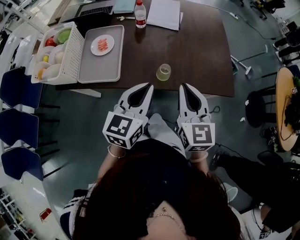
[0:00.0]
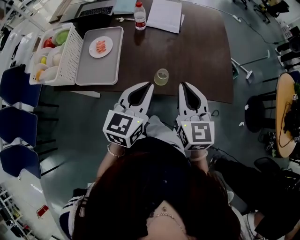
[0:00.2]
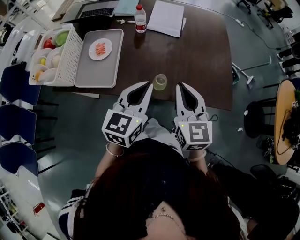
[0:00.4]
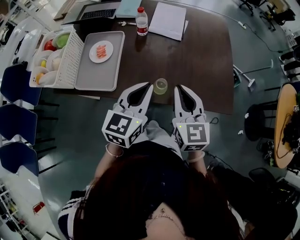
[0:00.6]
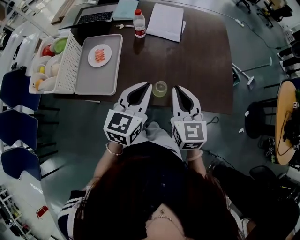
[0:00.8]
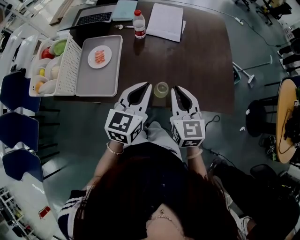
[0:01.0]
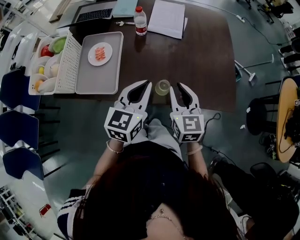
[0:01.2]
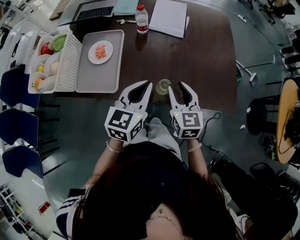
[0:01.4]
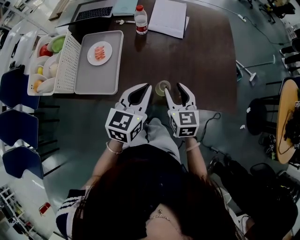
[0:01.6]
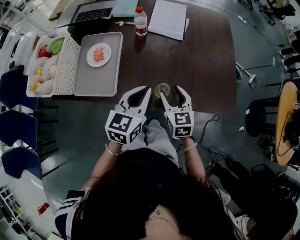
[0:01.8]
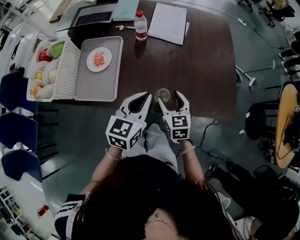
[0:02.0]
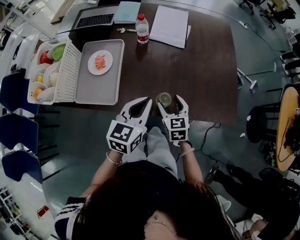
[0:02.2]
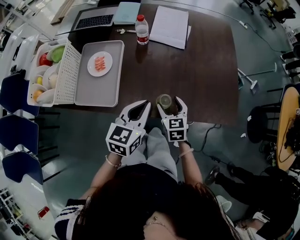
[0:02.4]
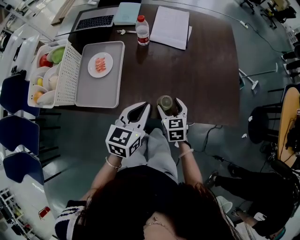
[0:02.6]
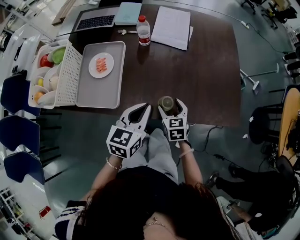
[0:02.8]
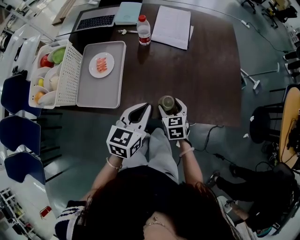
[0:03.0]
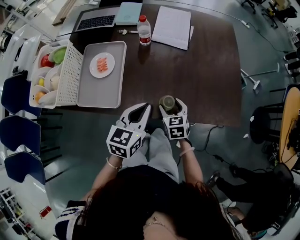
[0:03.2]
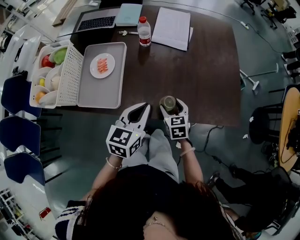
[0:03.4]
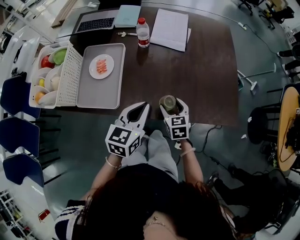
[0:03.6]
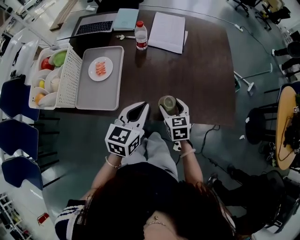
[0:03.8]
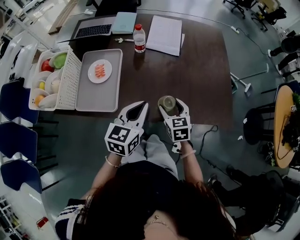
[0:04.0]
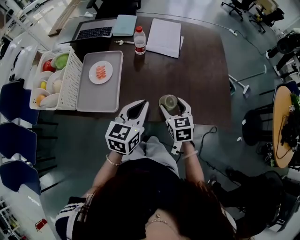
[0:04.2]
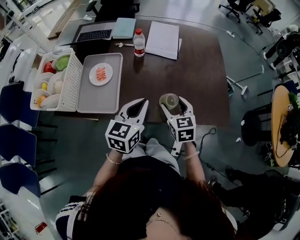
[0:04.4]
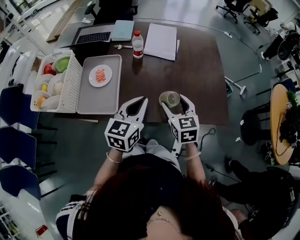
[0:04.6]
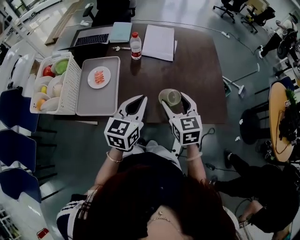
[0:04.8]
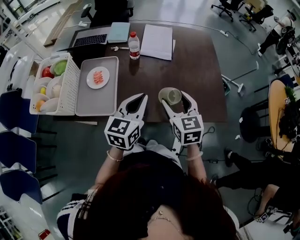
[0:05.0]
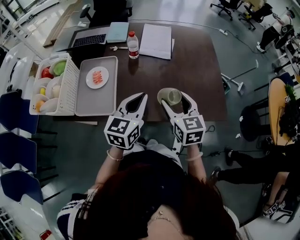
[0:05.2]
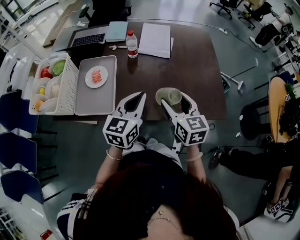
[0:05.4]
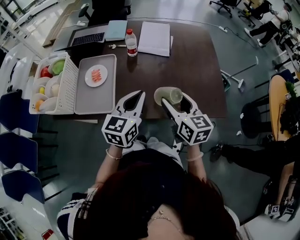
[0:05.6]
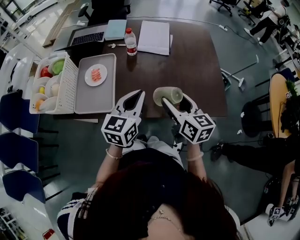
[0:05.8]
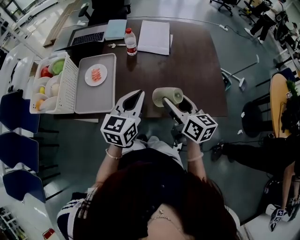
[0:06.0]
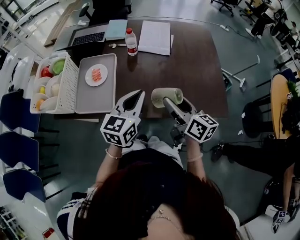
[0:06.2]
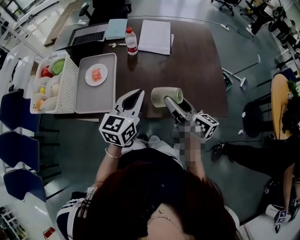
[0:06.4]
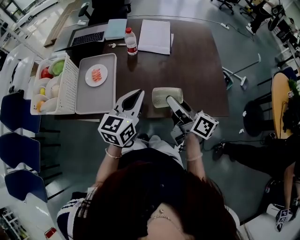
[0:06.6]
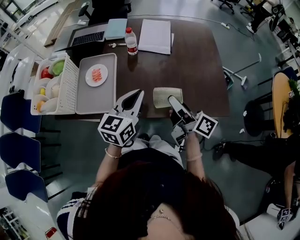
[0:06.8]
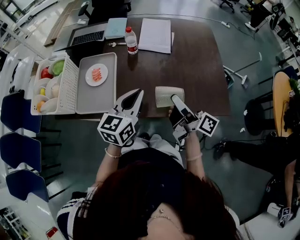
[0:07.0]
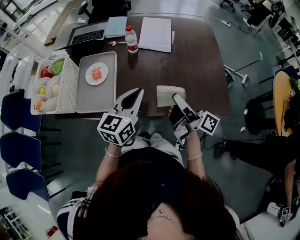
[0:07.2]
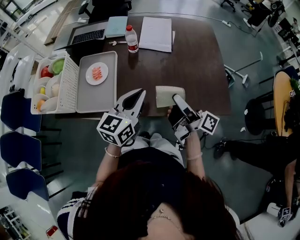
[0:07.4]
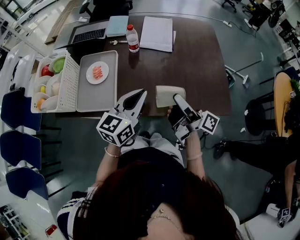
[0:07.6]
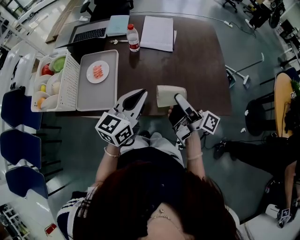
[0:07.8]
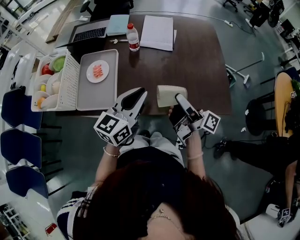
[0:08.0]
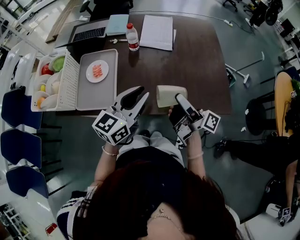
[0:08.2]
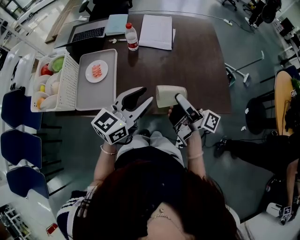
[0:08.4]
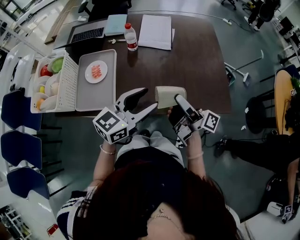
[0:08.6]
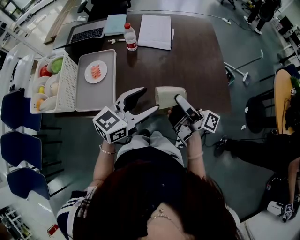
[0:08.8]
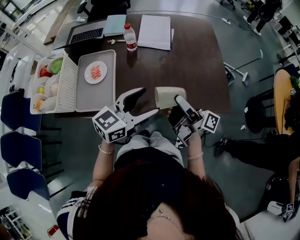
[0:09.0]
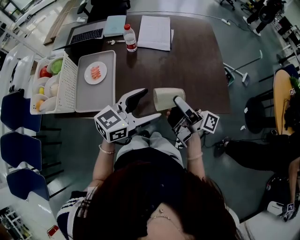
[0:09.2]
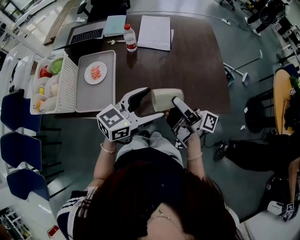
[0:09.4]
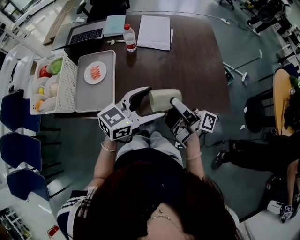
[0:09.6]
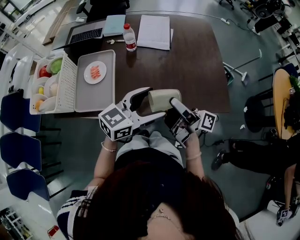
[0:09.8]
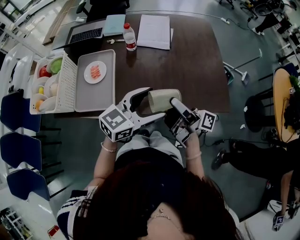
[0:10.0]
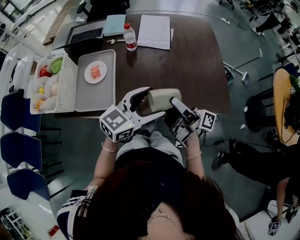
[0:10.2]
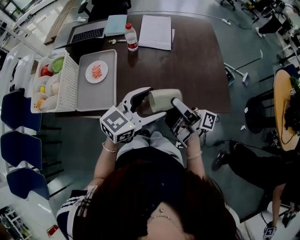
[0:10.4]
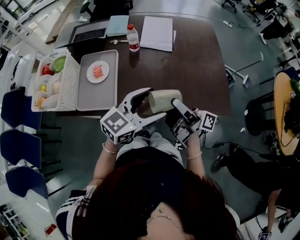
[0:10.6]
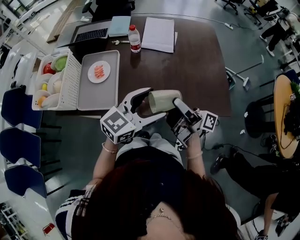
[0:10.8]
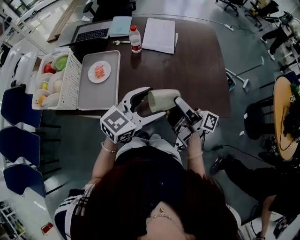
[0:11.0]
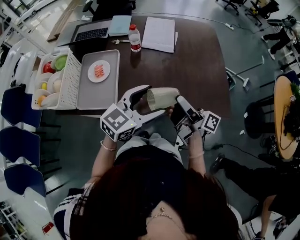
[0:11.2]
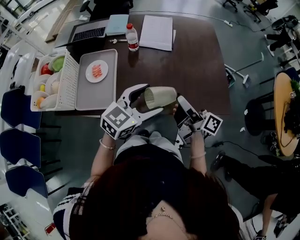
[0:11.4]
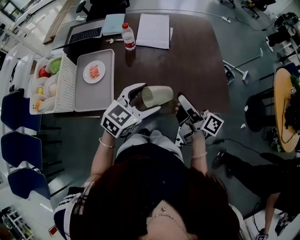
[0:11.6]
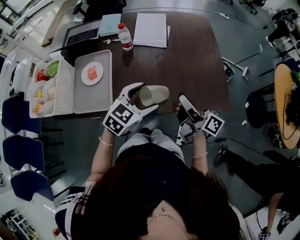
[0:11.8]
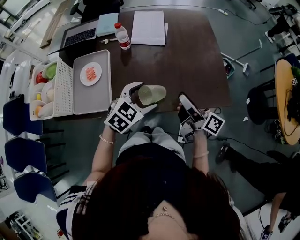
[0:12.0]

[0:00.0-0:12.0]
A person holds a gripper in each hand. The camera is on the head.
0:00.0 to 0:01.6: The right gripper heads downward and forward, covering some 15 cm, and opens; the left gripper goes some 10 cm forward and downward.
0:01.6 to 0:03.0: The right gripper is displaced downward by about 15 cm, and opens.
0:03.0 to 0:04.4: The left gripper shifts approximately 5 cm upward. The right gripper goes about 15 cm upward.
0:04.4 to 0:06.0: The right gripper is displaced upward by some 10 cm, and changes its angle by roughly 40 degrees.
0:06.0 to 0:07.6: The right gripper twists roughly 50 degrees clockwise, seen from behind.
0:07.6 to 0:09.0: The left gripper rotates roughly 20 degrees, and opens its fingers.
0:09.0 to 0:10.4: The grippers make only small movements.
0:10.4 to 0:12.0: The left gripper travels downward by about 10 cm, and rotates roughly 30 degrees. Meanwhile the right gripper moves to the right, approximately 10 cm, and rotates approximately 30 degrees.

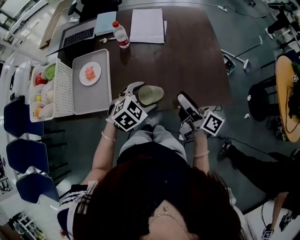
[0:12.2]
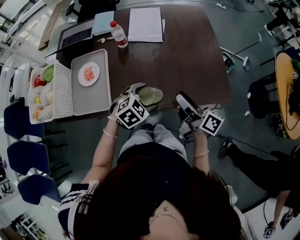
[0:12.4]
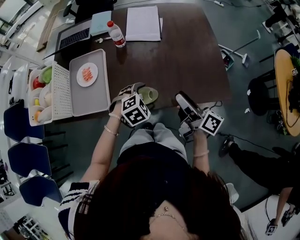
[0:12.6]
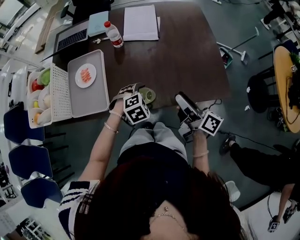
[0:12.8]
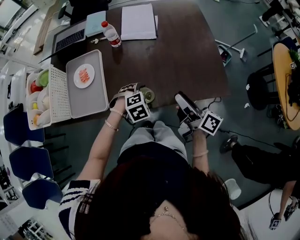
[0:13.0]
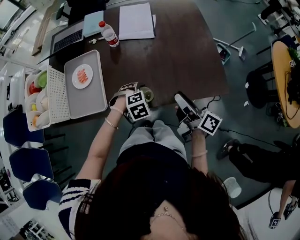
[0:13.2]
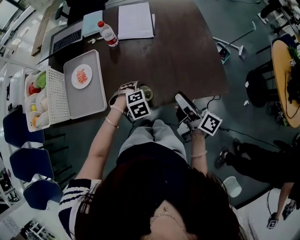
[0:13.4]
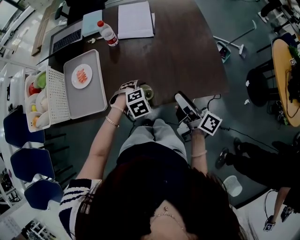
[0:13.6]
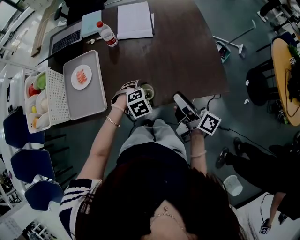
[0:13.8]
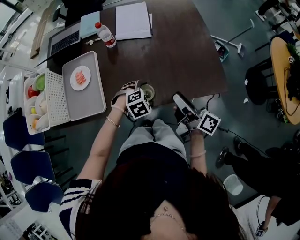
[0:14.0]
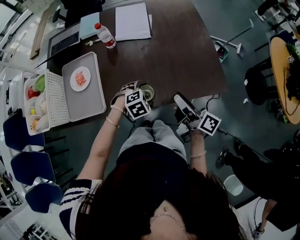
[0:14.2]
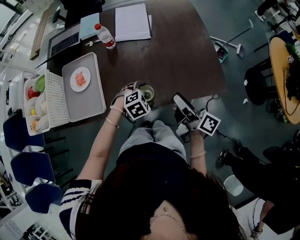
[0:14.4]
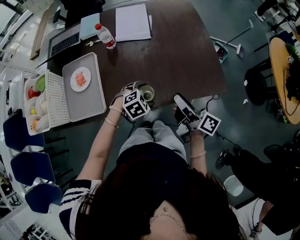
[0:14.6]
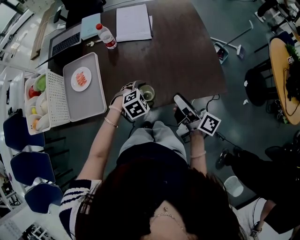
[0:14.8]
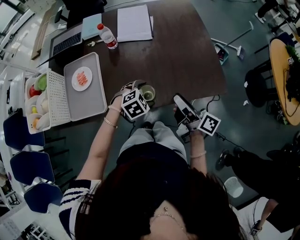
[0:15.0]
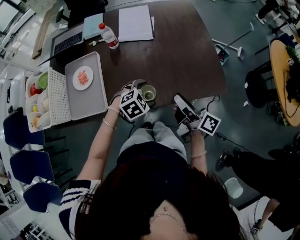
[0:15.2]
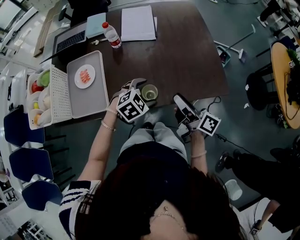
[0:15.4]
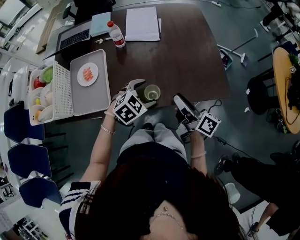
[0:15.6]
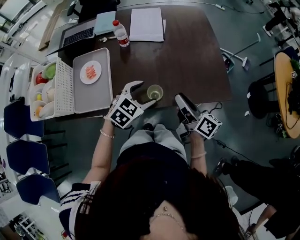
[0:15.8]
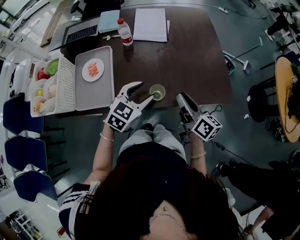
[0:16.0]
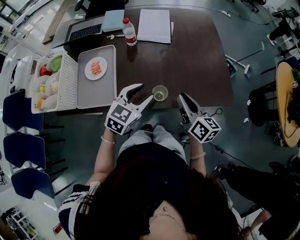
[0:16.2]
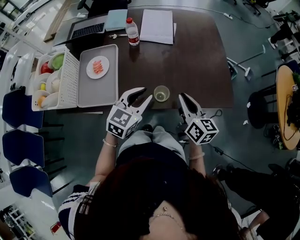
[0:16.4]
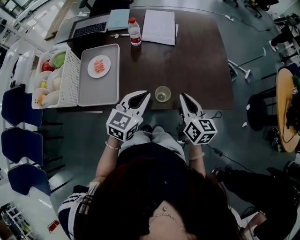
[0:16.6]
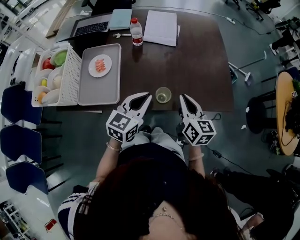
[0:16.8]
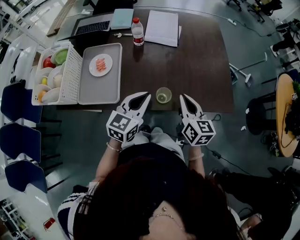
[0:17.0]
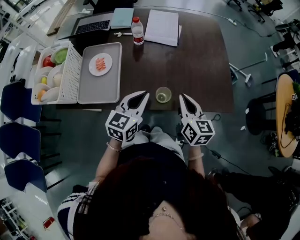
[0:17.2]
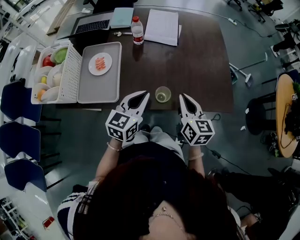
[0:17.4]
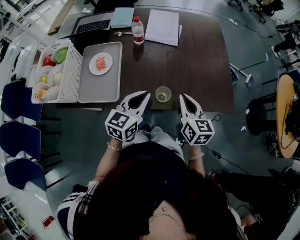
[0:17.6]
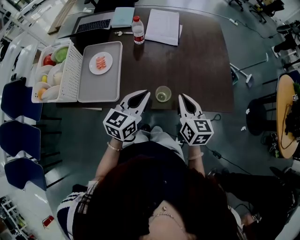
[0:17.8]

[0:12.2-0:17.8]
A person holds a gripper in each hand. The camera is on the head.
0:12.2 to 0:13.6: The left gripper shifts some 10 cm downward, and rotates roughly 30 degrees.
0:13.6 to 0:15.0: The grippers make only small movements.
0:15.0 to 0:16.4: The right gripper swivels about 40 degrees, and closes up. Meanwhile the left gripper travels upward and to the left by about 15 cm, points its fingers approximately 40 degrees further upward, and closes its fingers.
0:16.4 to 0:17.8: The left gripper changes its angle by some 20 degrees.

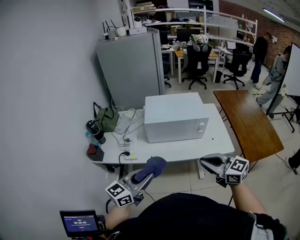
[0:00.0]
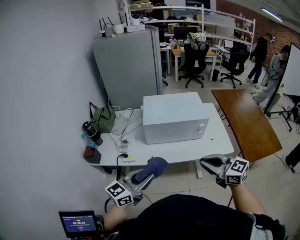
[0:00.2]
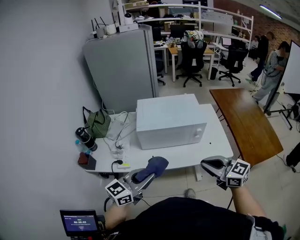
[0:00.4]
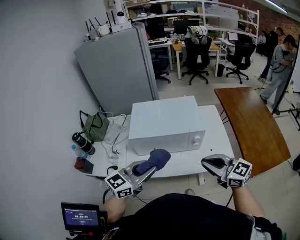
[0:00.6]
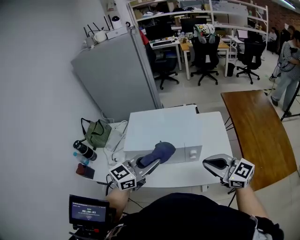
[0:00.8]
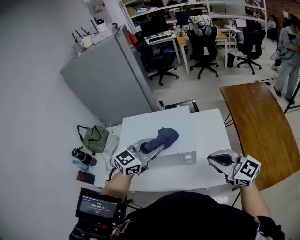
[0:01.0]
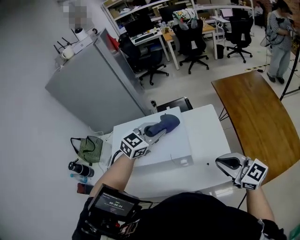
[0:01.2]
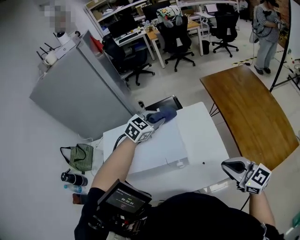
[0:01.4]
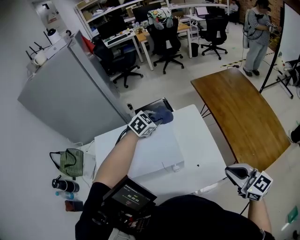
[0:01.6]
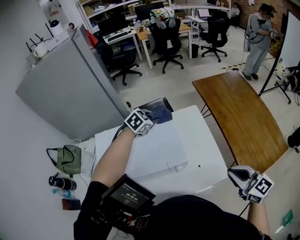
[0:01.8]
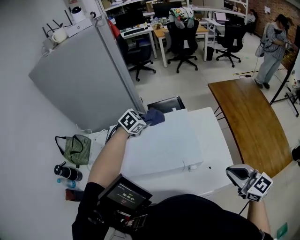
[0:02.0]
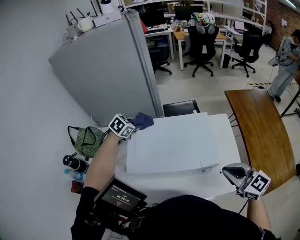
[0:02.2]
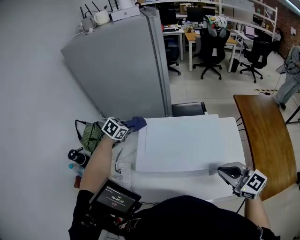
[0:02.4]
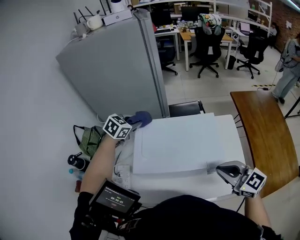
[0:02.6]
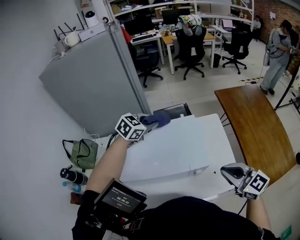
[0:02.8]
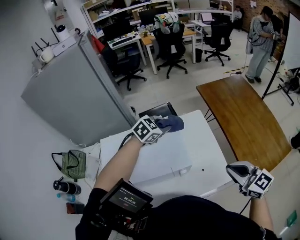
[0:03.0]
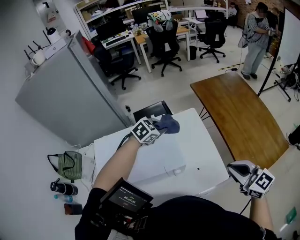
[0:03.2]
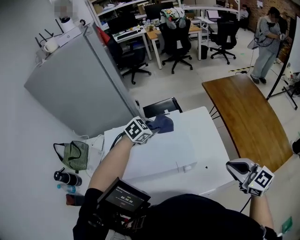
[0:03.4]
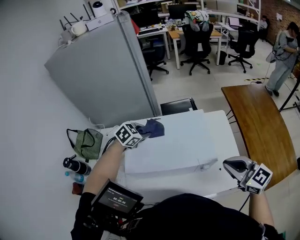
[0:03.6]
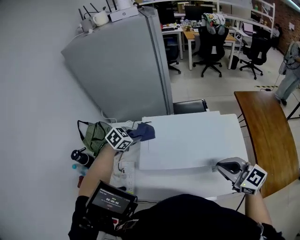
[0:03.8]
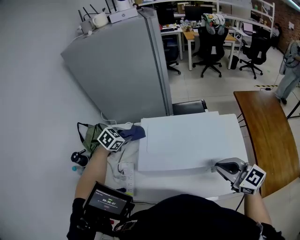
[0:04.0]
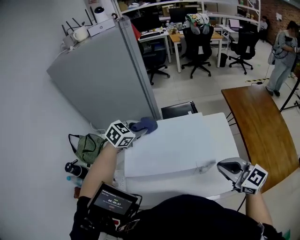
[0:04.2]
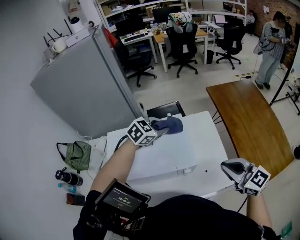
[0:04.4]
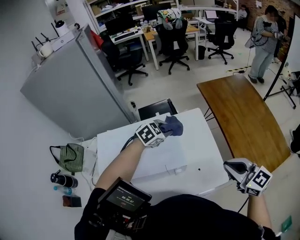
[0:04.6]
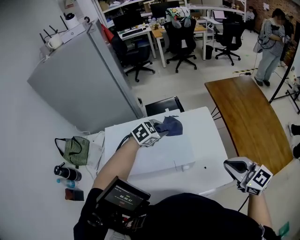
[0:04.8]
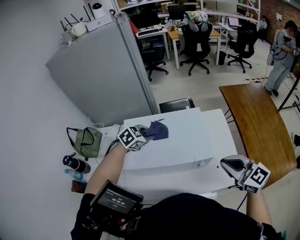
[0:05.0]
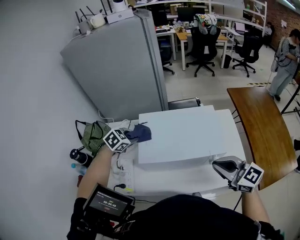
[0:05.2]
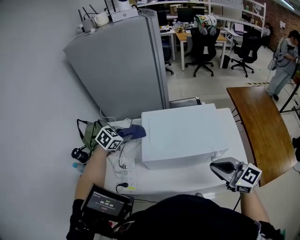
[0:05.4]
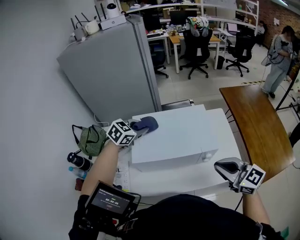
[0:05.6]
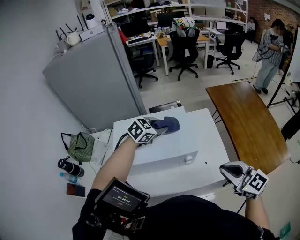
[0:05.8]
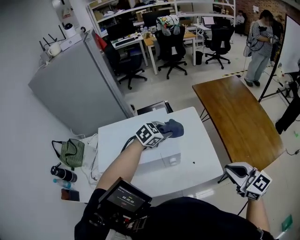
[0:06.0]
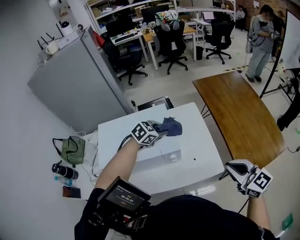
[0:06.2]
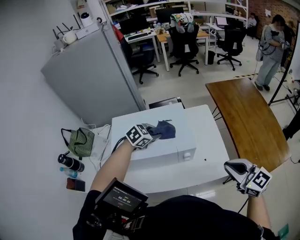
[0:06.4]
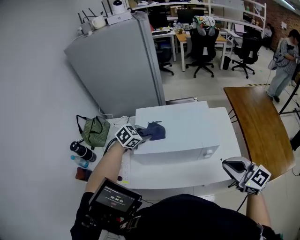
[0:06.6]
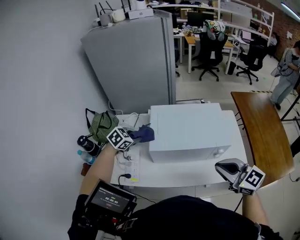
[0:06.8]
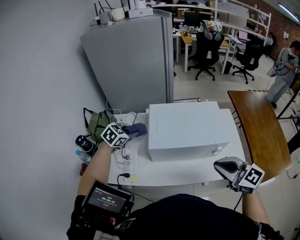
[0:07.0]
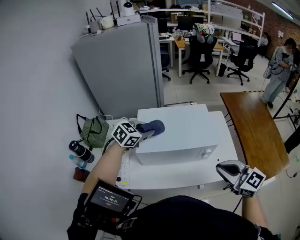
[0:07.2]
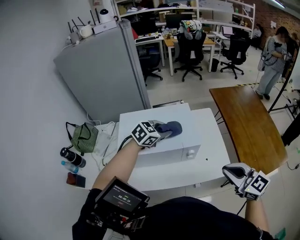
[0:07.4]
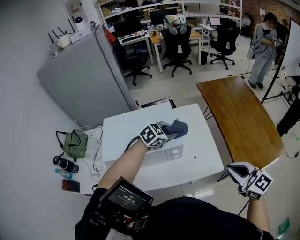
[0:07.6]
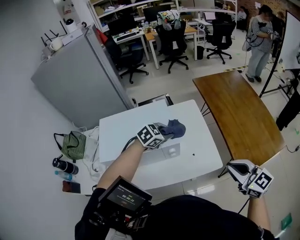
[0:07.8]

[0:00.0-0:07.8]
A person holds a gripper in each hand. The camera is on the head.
0:00.0 to 0:01.6: The left gripper is displaced forward and to the right by some 70 cm, and angles its fingers downward, by about 50 degrees. The right gripper moves to the right and forward, about 35 cm, and rotates some 20 degrees.
0:01.6 to 0:03.2: The left gripper travels upward and back again, some 10 cm each way.
0:03.2 to 0:04.6: The left gripper travels upward and back again, roughly 10 cm each way.
0:04.6 to 0:06.2: Both grippers move backward, roughly 5 cm. The right gripper moves approximately 25 cm to the left and comes back, while the left gripper goes to the left and returns, about 40 cm each way.
0:06.2 to 0:07.8: The left gripper travels upward and back again, some 10 cm each way.
